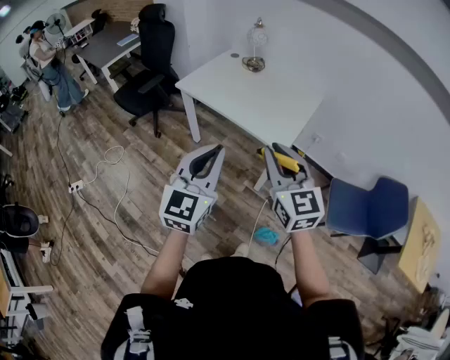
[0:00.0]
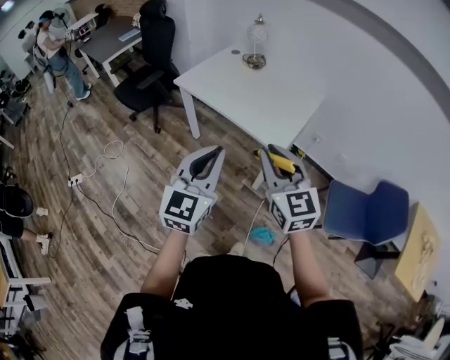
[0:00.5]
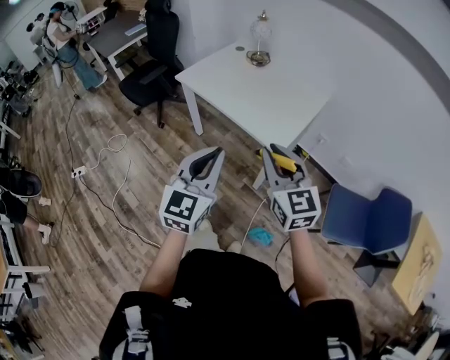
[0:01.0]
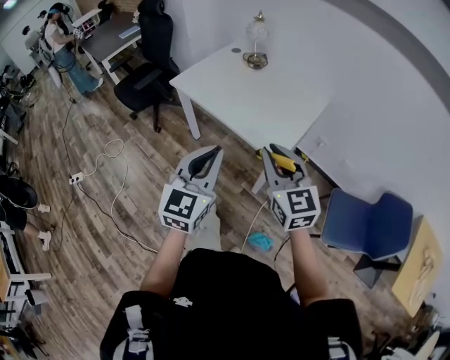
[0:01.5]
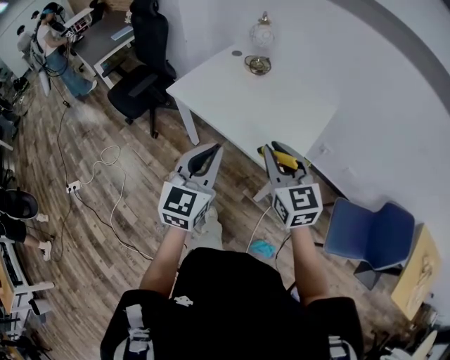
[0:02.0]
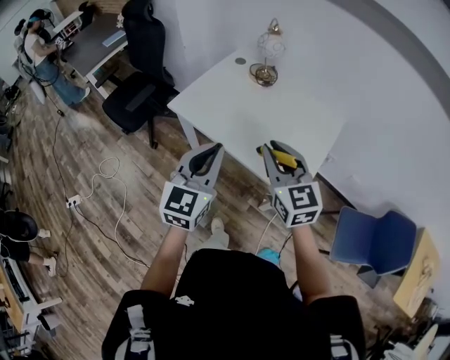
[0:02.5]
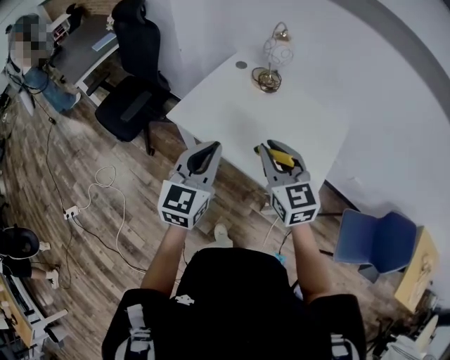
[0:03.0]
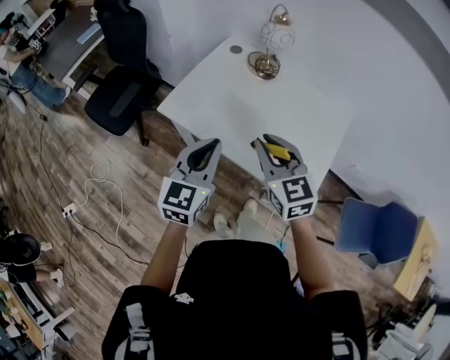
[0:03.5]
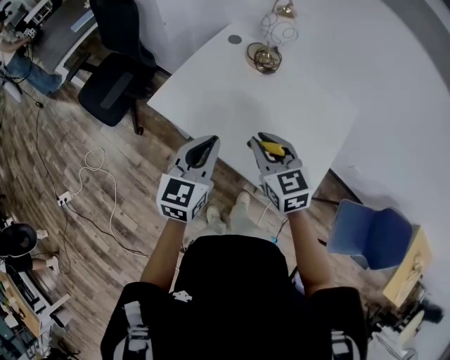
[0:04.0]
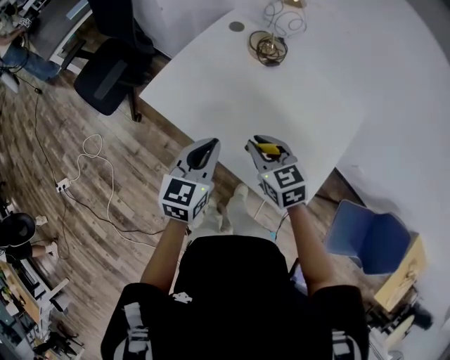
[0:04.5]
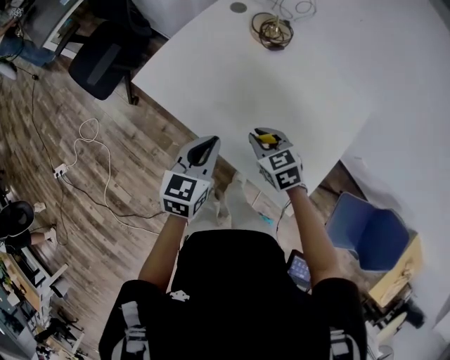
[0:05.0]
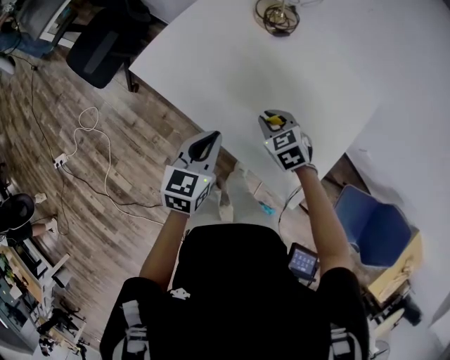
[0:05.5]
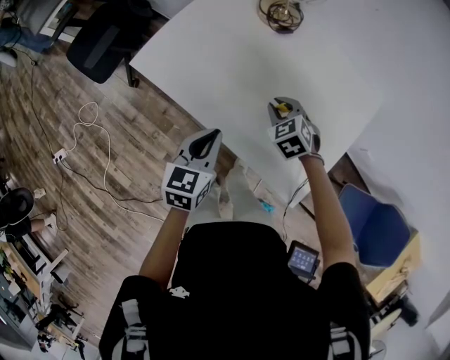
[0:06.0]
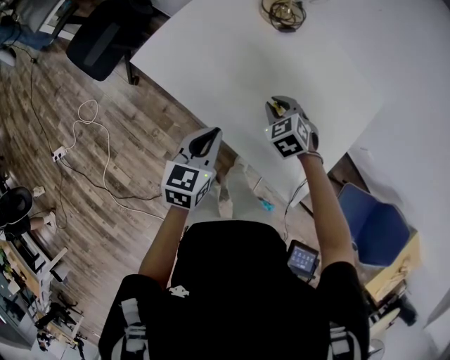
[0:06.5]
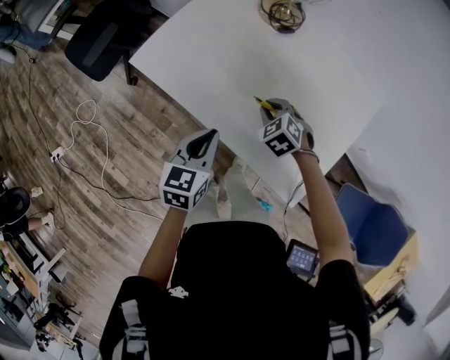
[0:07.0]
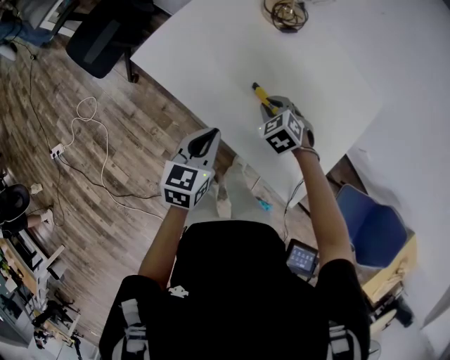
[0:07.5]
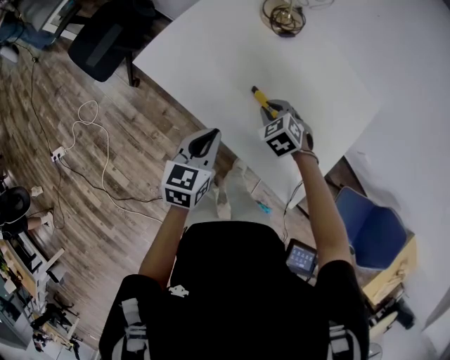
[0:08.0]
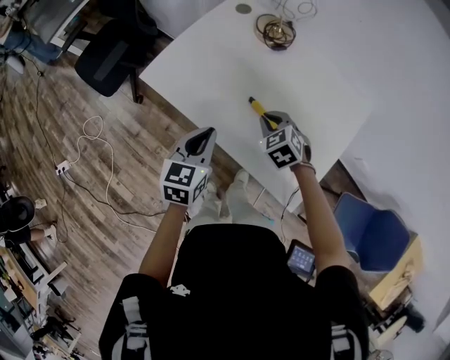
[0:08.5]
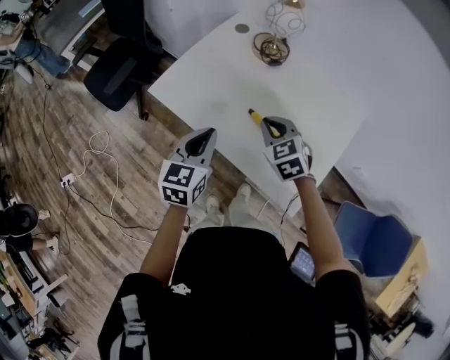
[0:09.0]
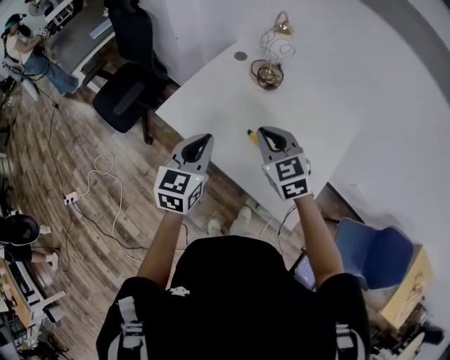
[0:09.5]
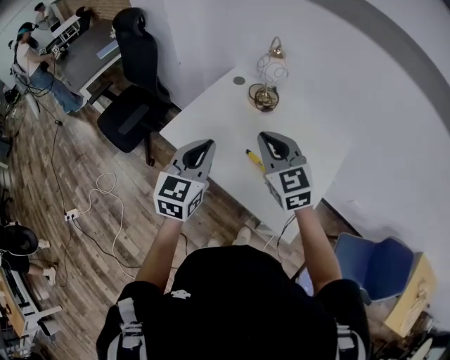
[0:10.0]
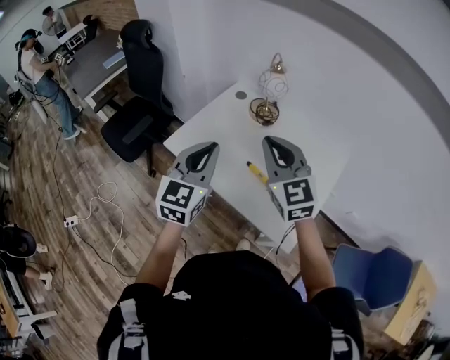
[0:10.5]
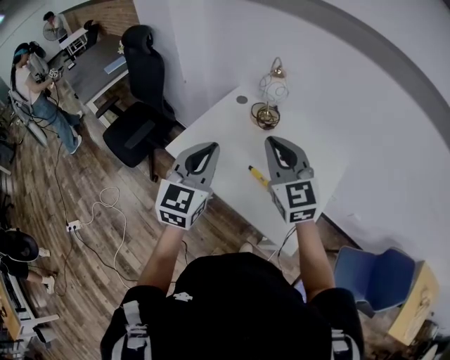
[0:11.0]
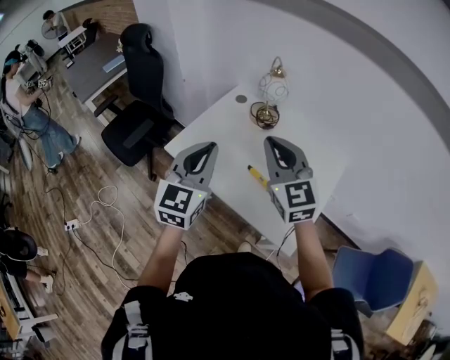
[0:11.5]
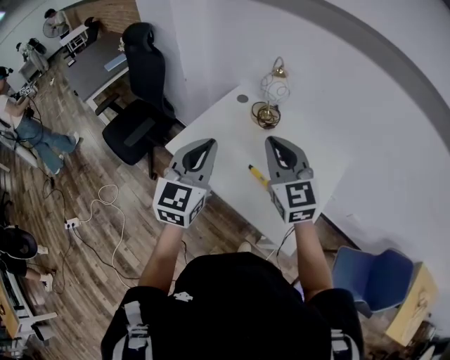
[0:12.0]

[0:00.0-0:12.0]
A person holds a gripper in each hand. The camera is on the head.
0:00.0 to 0:02.0: Both grippers travel together forward, some 20 cm.
0:02.0 to 0:04.0: The right gripper goes about 25 cm forward and downward, while the left gripper heads forward, covering approximately 25 cm.
0:04.0 to 0:06.0: The two grippers go some 20 cm downward. The right gripper points its fingers about 30 degrees further downward.
0:06.0 to 0:08.0: The grippers make only small movements.
0:08.0 to 0:10.0: The two grippers go approximately 30 cm upward. The right gripper points its fingers approximately 50 degrees further upward; the left gripper changes its angle by about 30 degrees.
0:10.0 to 0:12.0: The two grippers go some 5 cm upward.

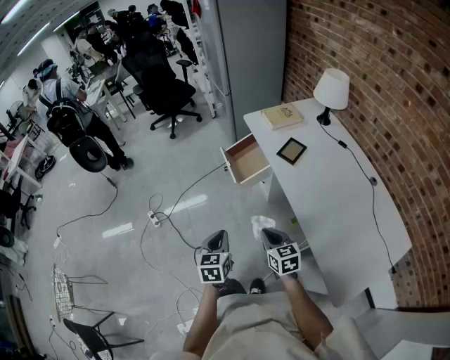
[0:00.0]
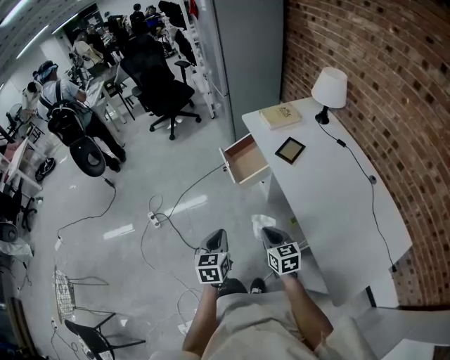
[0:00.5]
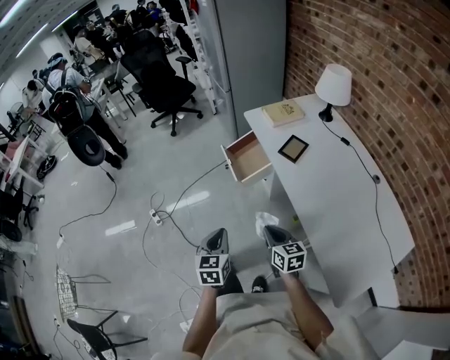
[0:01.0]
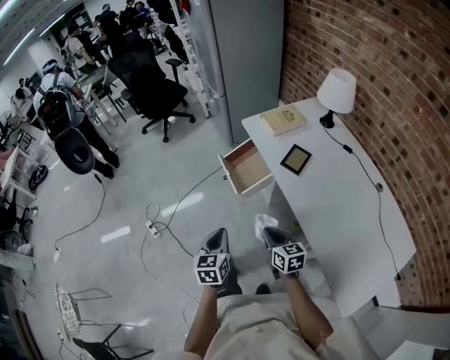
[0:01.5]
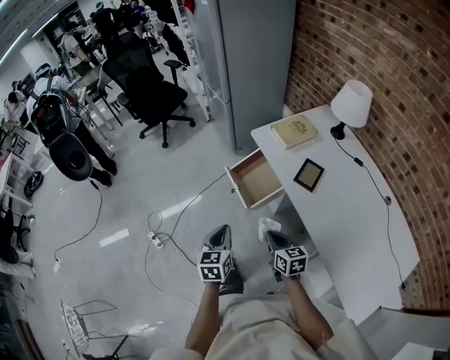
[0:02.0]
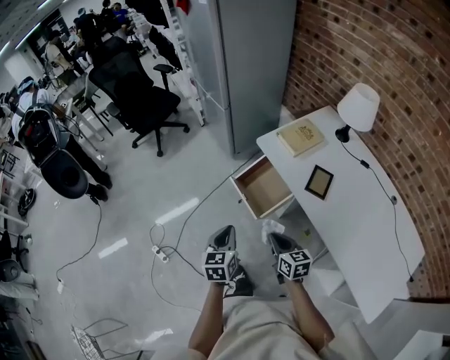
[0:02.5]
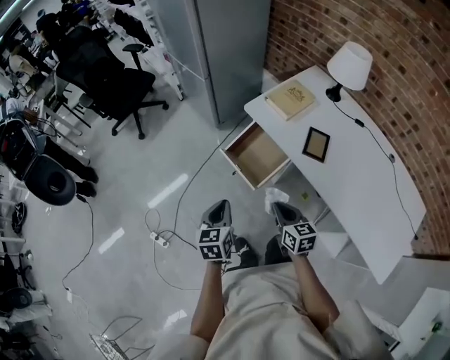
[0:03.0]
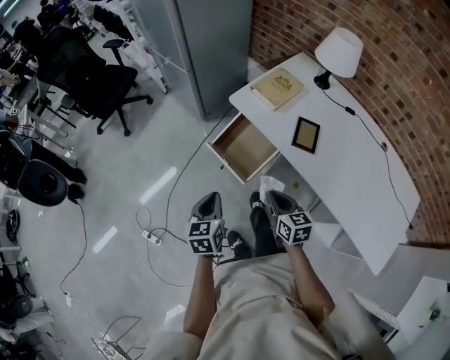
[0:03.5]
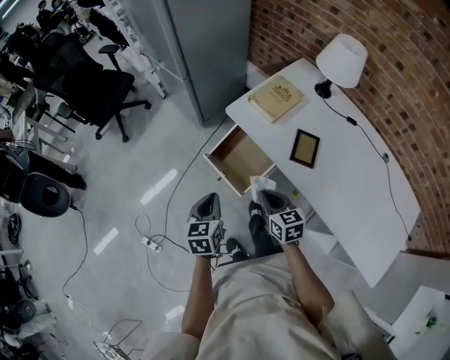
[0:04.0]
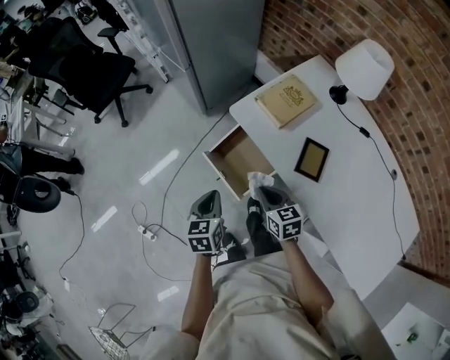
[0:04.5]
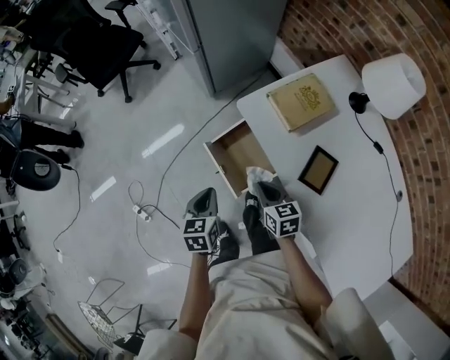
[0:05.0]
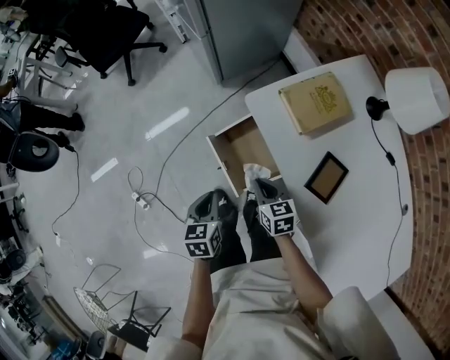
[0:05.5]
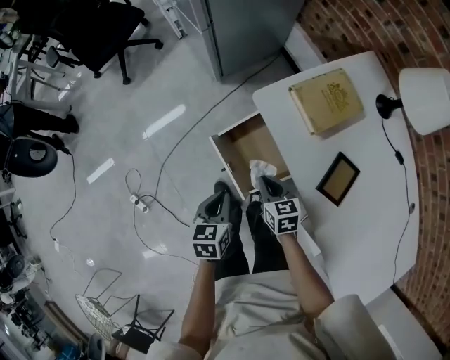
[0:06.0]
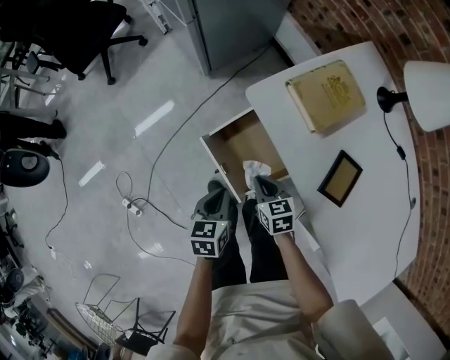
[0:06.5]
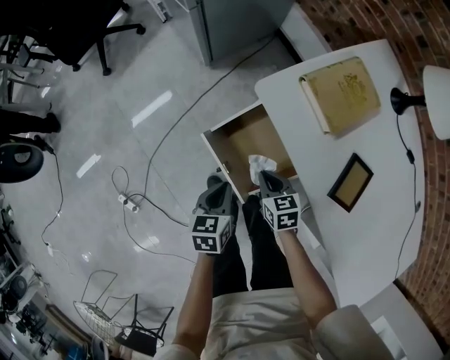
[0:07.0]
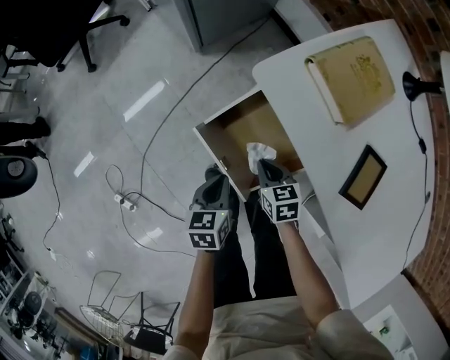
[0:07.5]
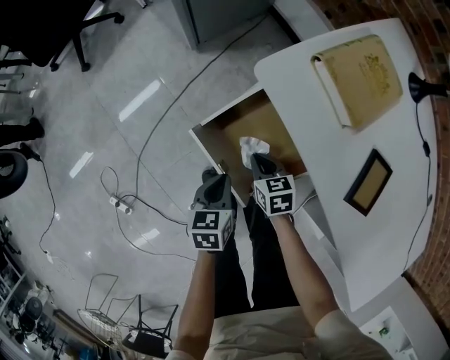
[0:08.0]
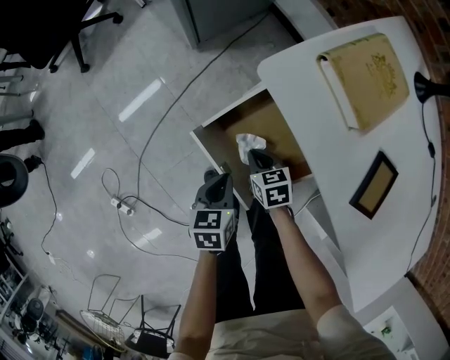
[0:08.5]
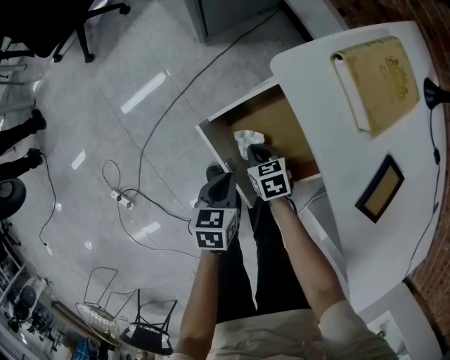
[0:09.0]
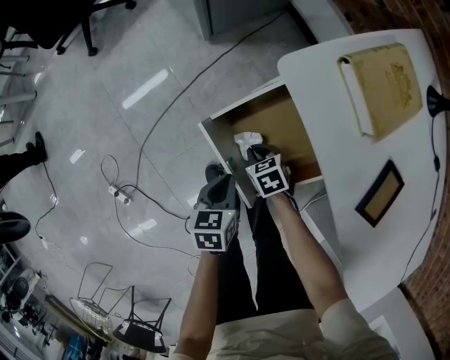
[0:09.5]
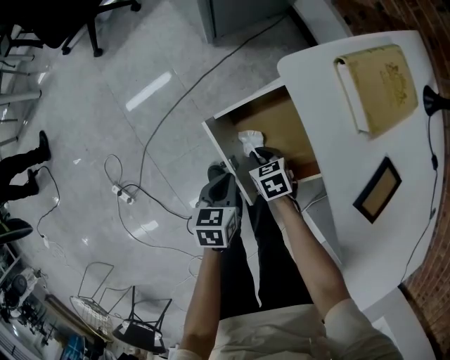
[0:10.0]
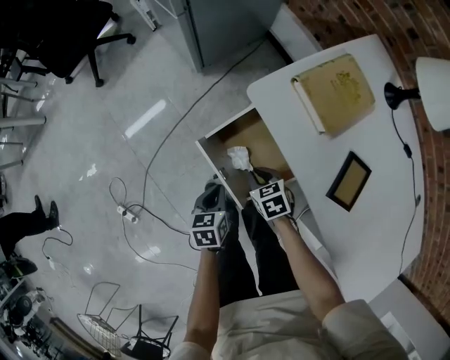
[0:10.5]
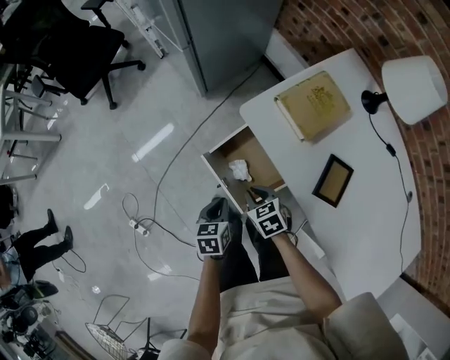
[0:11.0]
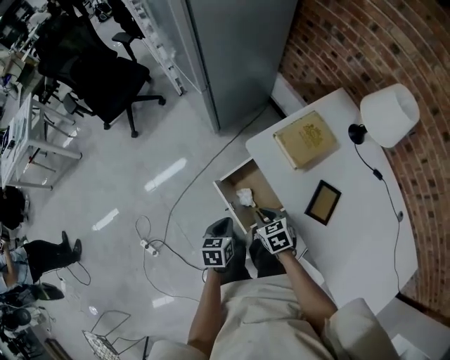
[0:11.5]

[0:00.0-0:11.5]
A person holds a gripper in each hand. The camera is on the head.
0:00.0 to 0:02.0: The two grippers go approximately 20 cm forward.
0:02.0 to 0:04.0: The two grippers go about 20 cm forward.
0:04.0 to 0:06.0: Both grippers travel together downward and forward, about 20 cm.
0:06.0 to 0:07.5: Both grippers travel together downward, roughly 15 cm.
0:07.5 to 0:09.5: The left gripper heads downward, covering some 5 cm. The right gripper goes about 10 cm downward and to the left, and turns by roughly 20 degrees.
0:09.5 to 0:11.5: The grippers both shift upward by some 25 cm.

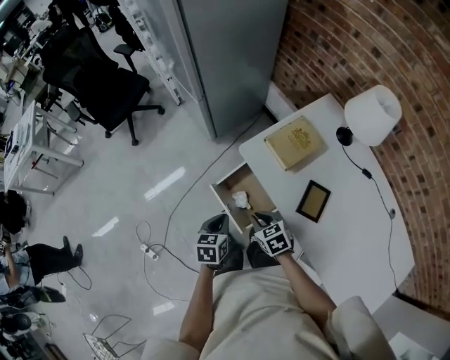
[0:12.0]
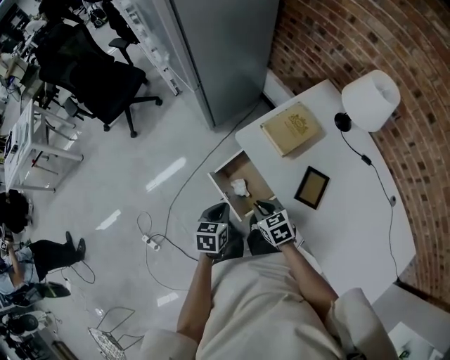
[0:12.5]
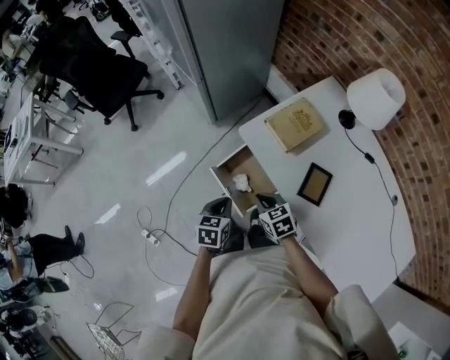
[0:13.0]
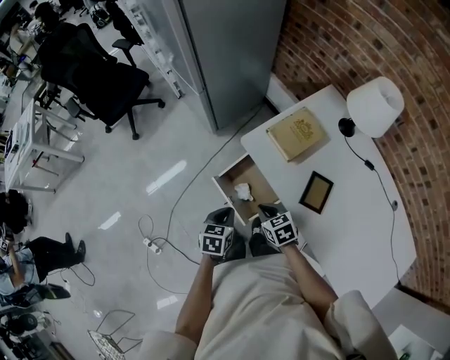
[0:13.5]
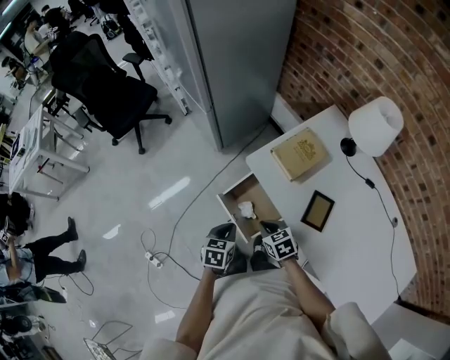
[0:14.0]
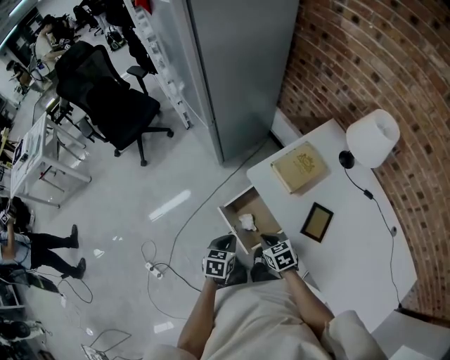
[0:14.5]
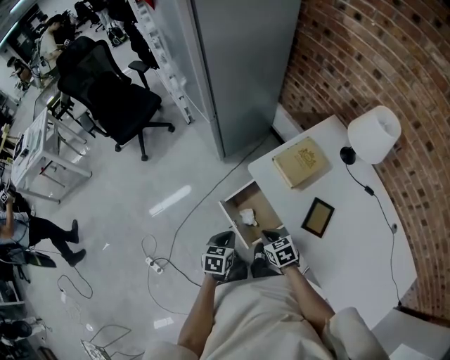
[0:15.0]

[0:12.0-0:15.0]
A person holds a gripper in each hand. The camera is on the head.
0:12.0 to 0:15.0: The grippers make only small movements.

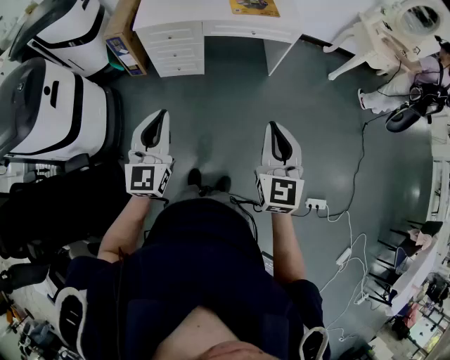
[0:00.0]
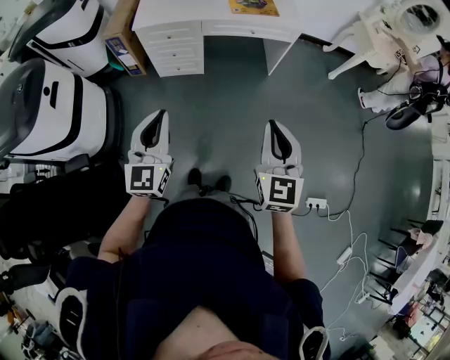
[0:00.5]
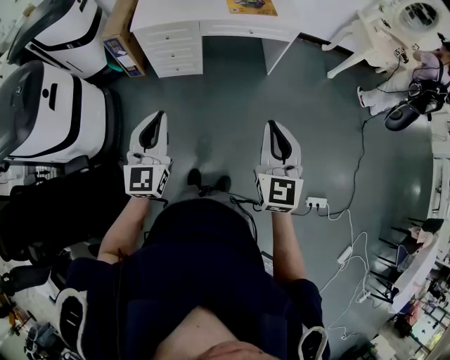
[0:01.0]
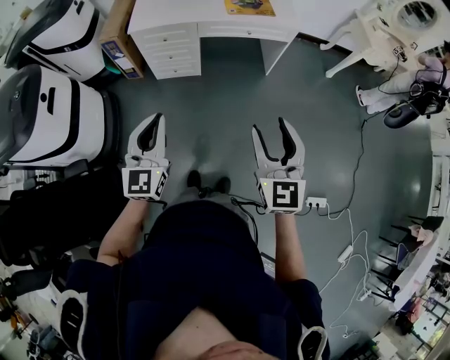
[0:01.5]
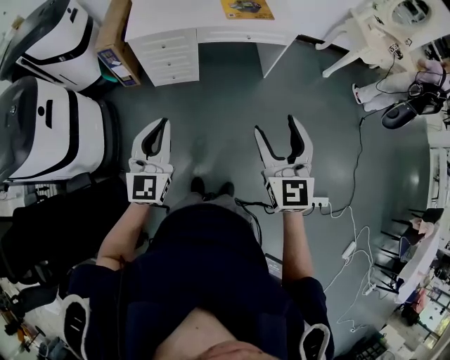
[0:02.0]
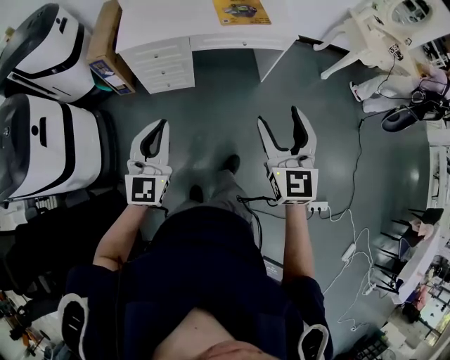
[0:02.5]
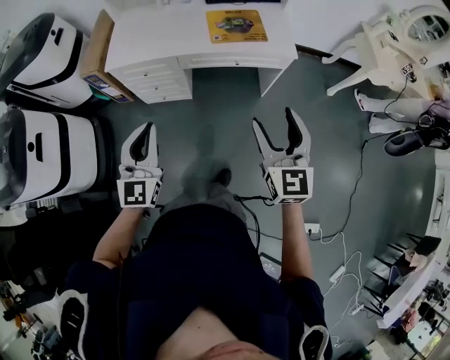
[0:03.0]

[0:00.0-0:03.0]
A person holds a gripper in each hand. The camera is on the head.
0:00.0 to 0:01.5: The right gripper opens its fingers.
0:01.5 to 0:03.0: Both grippers move forward, some 25 cm.
